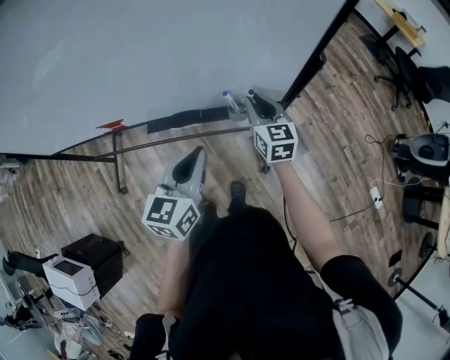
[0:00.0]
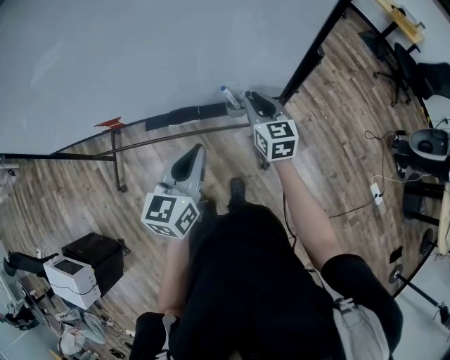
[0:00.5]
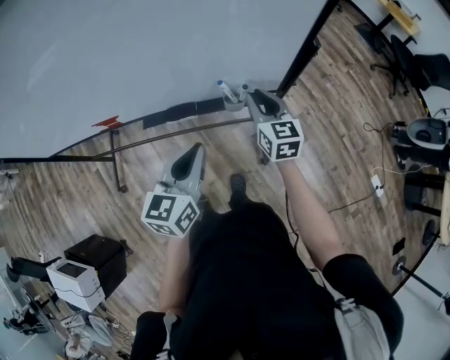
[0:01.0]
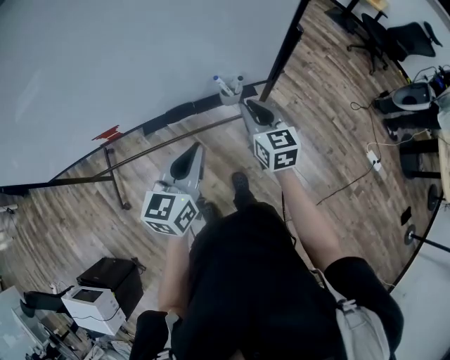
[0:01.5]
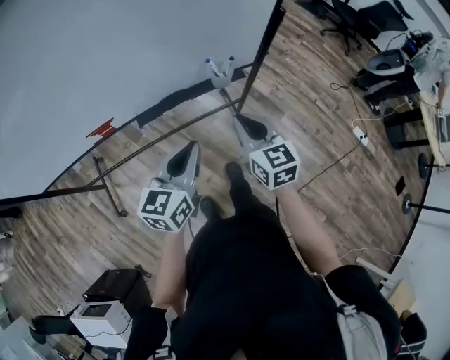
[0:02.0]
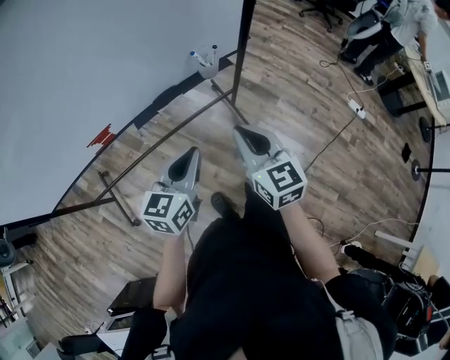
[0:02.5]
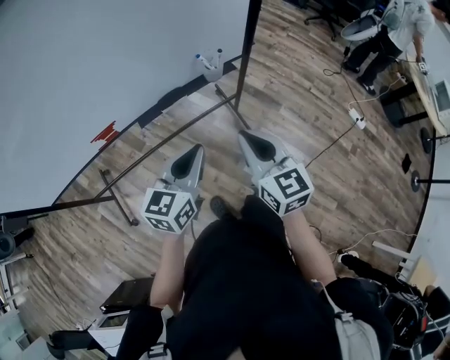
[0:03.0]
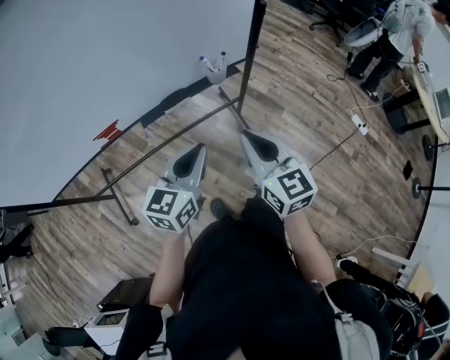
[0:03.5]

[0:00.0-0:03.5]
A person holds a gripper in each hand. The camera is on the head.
0:00.0 to 0:02.0: The left gripper moves backward and to the left, about 10 cm; the right gripper shifts roughly 20 cm backward.
0:02.0 to 0:03.5: The right gripper shifts roughly 15 cm backward and upward. The left gripper heads backward, covering about 5 cm.

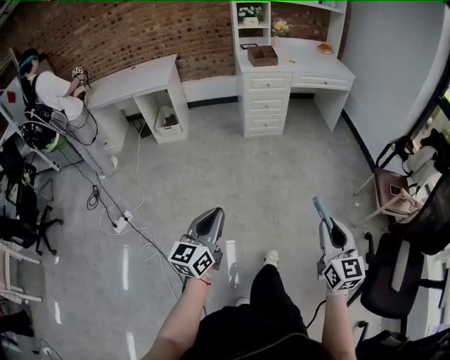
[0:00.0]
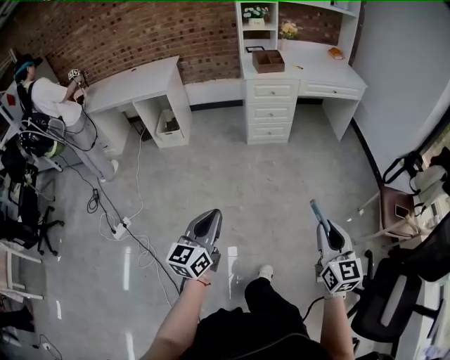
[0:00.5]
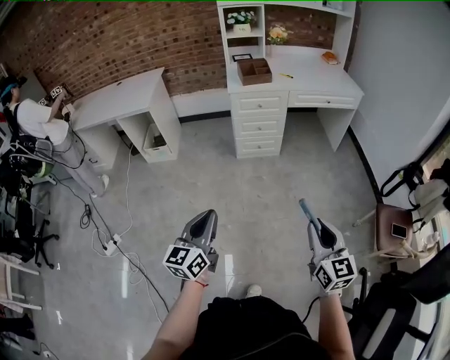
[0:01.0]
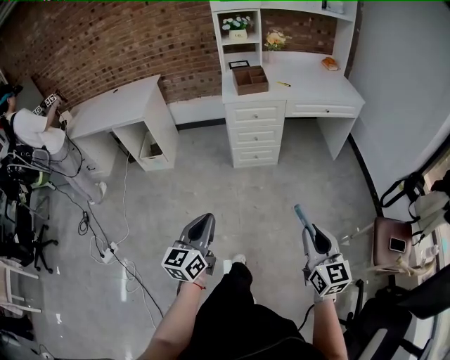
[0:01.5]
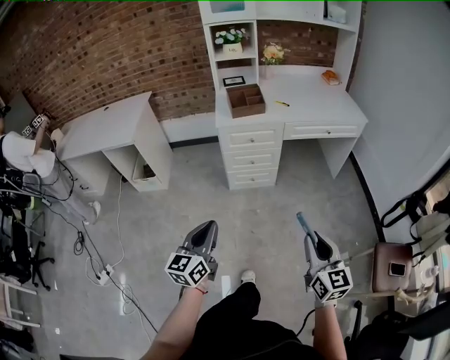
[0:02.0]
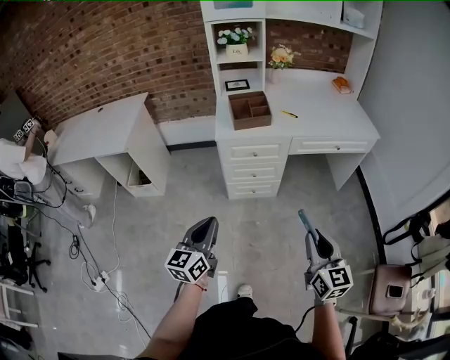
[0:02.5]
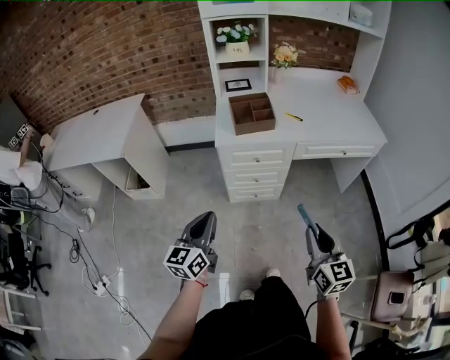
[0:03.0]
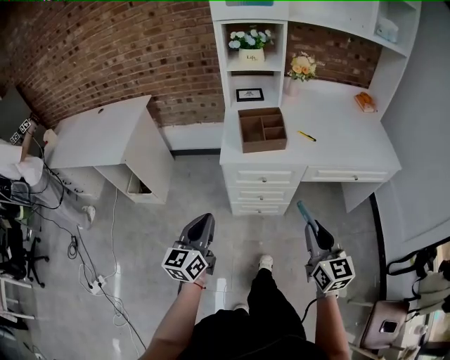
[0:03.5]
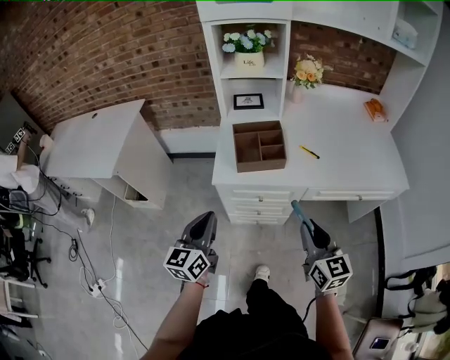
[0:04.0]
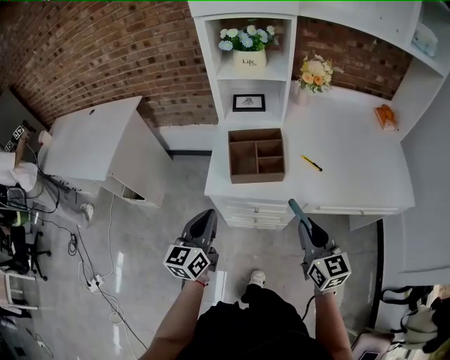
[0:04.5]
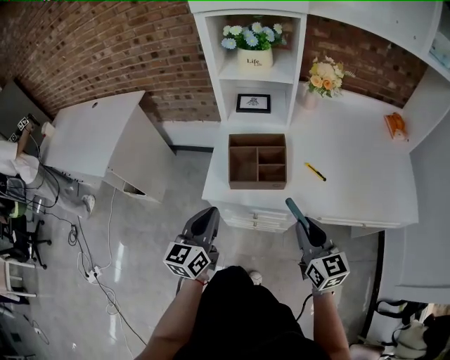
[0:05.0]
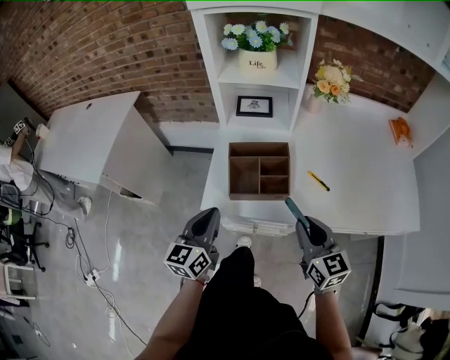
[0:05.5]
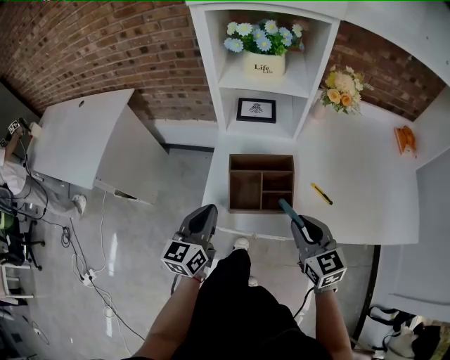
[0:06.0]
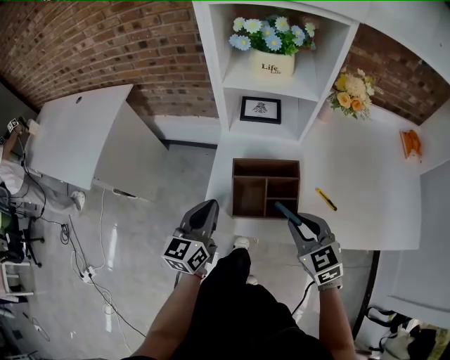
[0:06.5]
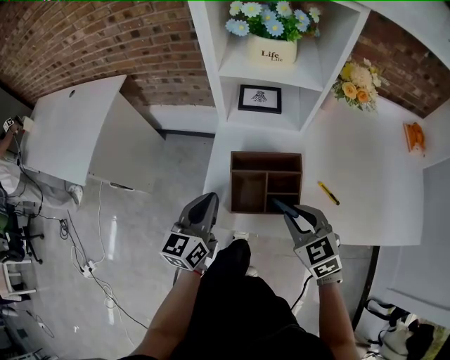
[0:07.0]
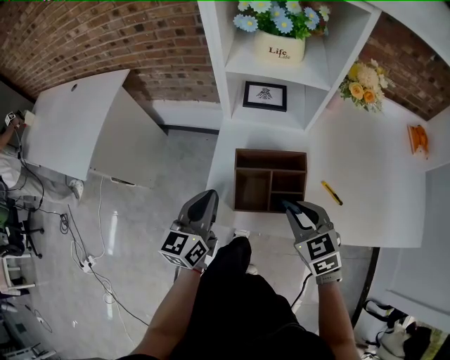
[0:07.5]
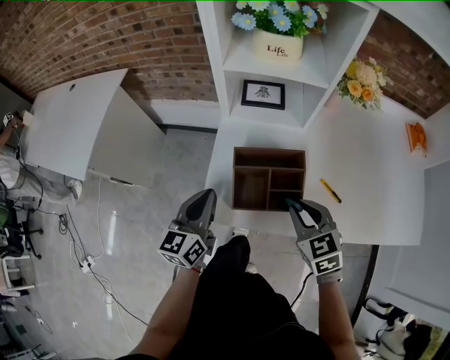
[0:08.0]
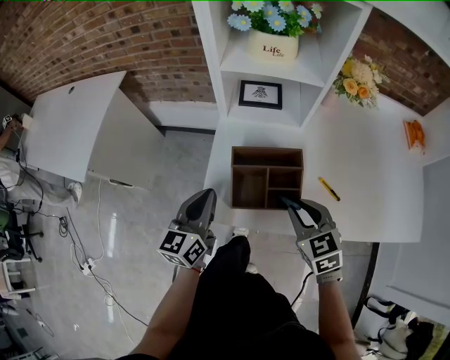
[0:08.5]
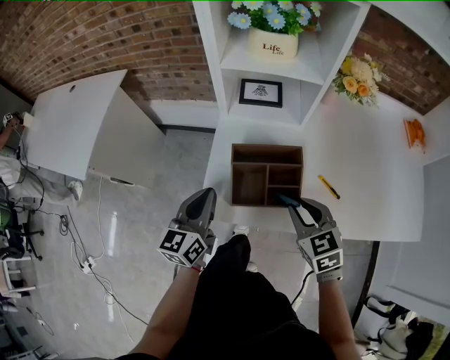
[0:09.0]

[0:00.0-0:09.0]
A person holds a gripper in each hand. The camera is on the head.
0:00.0 to 0:02.0: Both grippers are carried forward, approximately 50 cm.
0:02.0 to 0:04.5: The pair of grippers is taken forward, some 50 cm.
0:04.5 to 0:07.0: Both grippers travel together forward, roughly 20 cm. The right gripper turns by some 40 degrees.
0:07.0 to 0:09.0: The grippers move only a little.

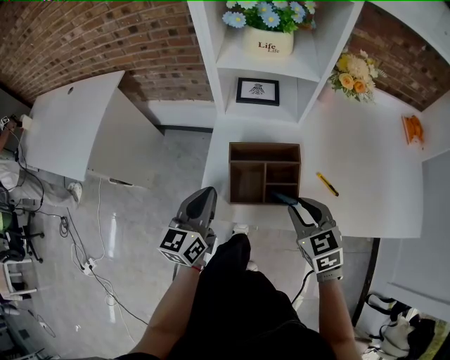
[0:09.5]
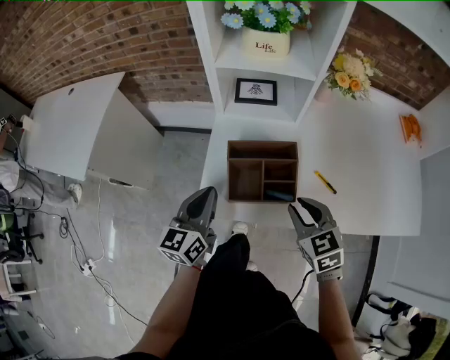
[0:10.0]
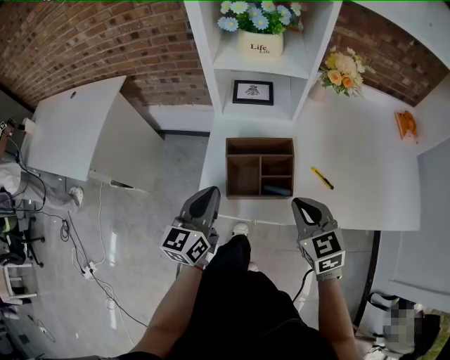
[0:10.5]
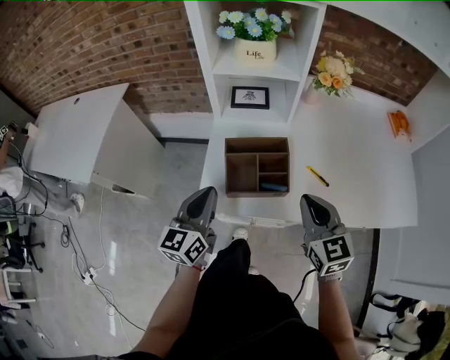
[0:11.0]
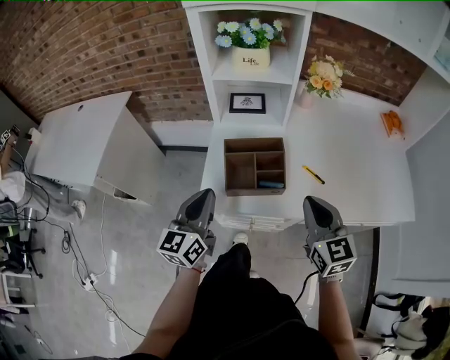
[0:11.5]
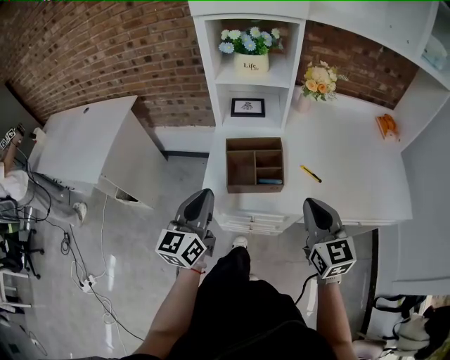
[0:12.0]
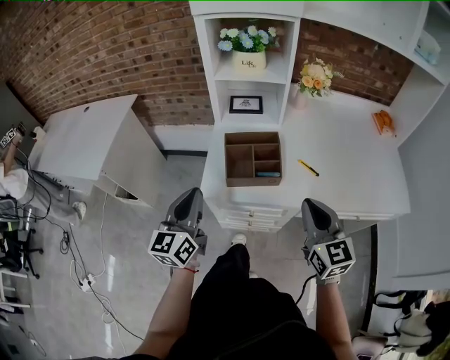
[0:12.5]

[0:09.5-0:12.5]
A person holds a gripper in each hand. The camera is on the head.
0:09.5 to 0:11.0: The left gripper moves about 5 cm, while the right gripper is displaced upward by about 10 cm, rotates some 20 degrees, and closes its fingers.
0:11.0 to 0:12.5: The left gripper goes roughly 10 cm backward and upward. The right gripper goes about 10 cm backward.

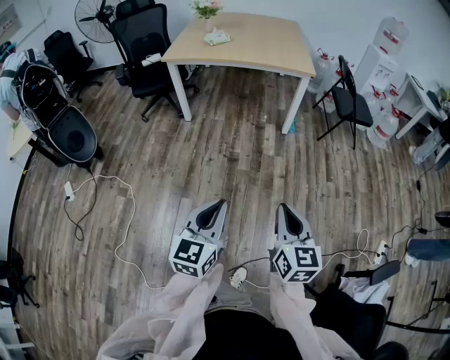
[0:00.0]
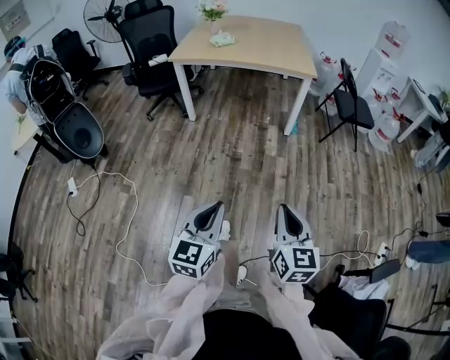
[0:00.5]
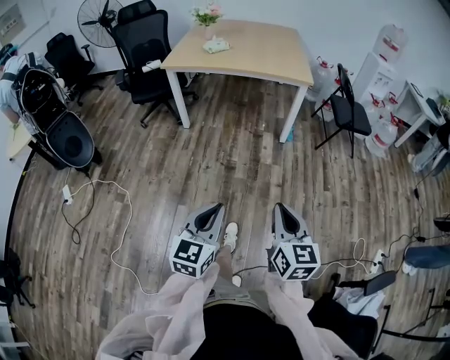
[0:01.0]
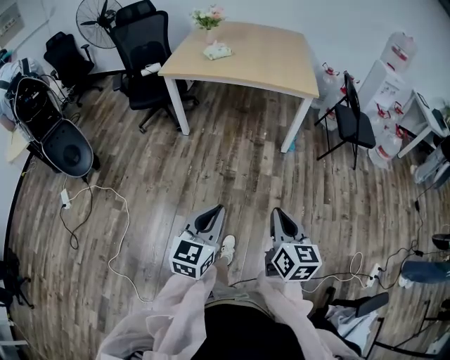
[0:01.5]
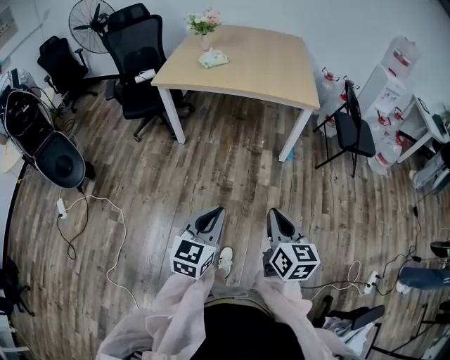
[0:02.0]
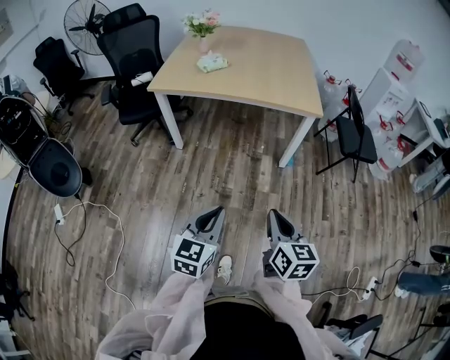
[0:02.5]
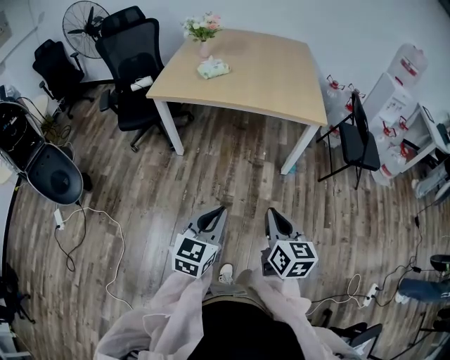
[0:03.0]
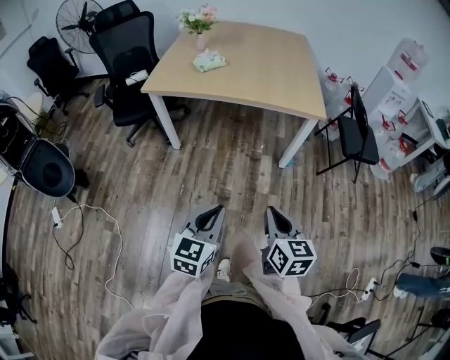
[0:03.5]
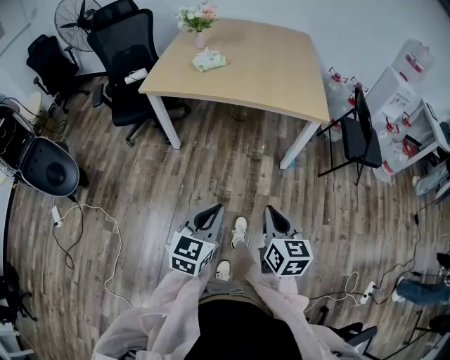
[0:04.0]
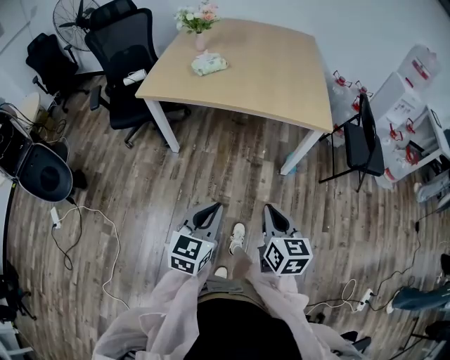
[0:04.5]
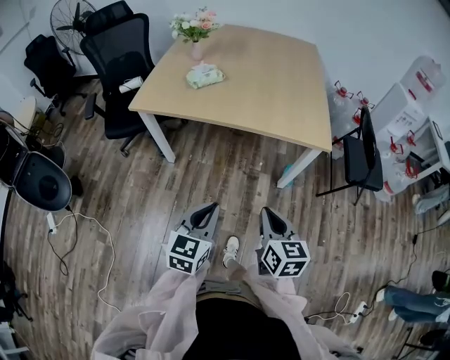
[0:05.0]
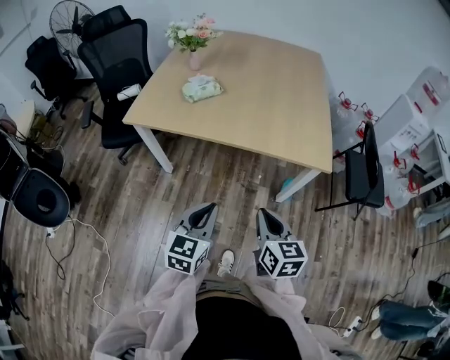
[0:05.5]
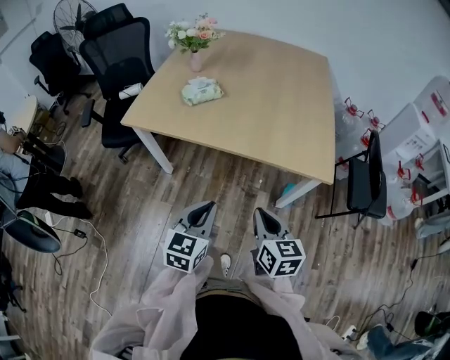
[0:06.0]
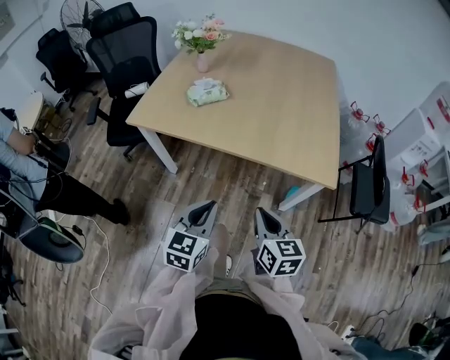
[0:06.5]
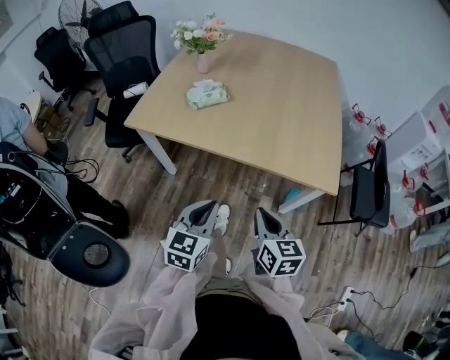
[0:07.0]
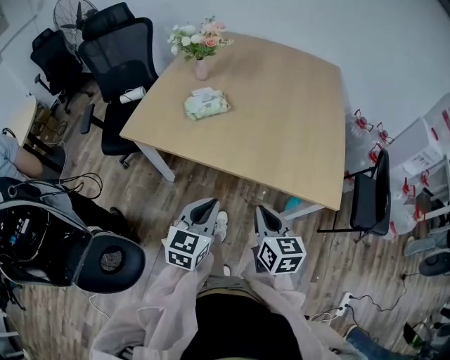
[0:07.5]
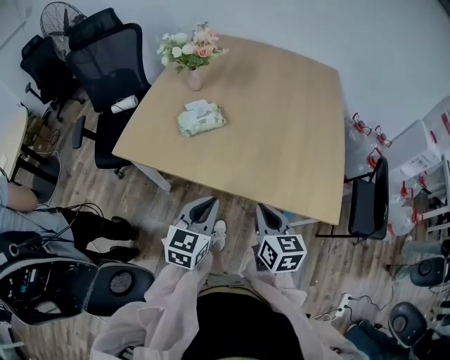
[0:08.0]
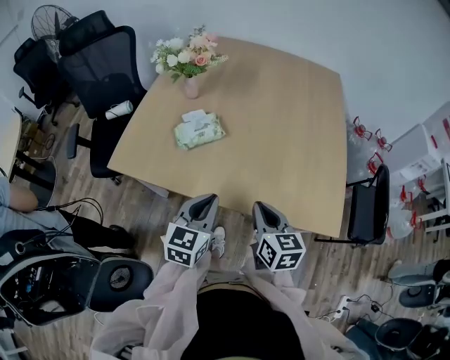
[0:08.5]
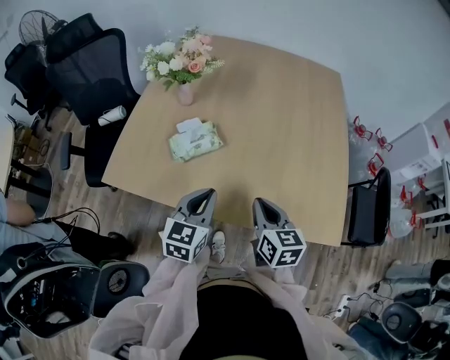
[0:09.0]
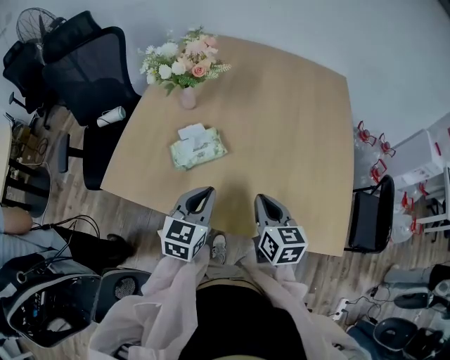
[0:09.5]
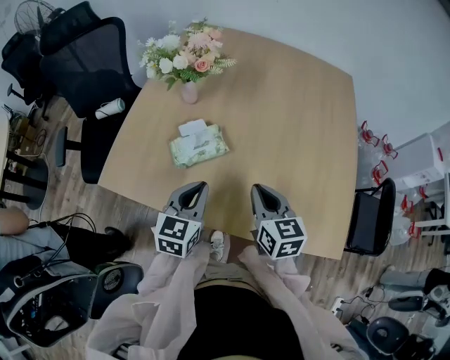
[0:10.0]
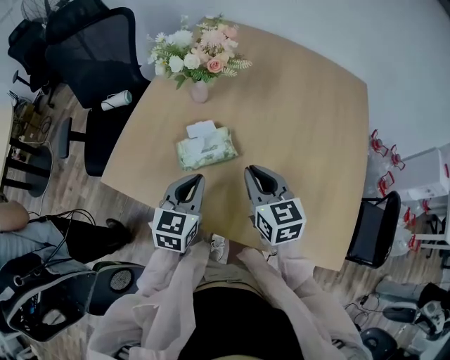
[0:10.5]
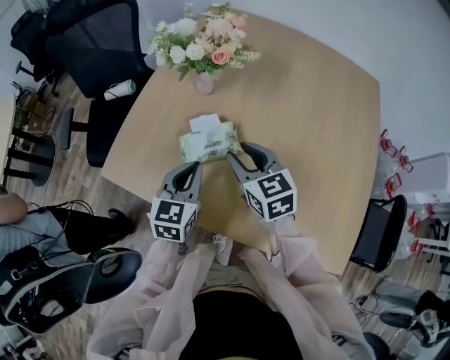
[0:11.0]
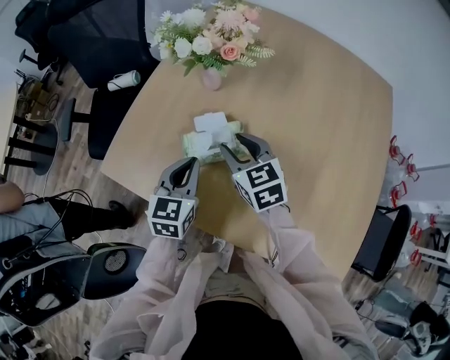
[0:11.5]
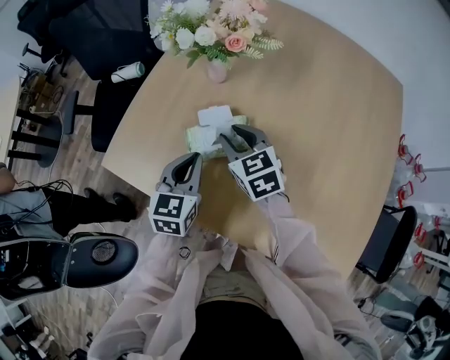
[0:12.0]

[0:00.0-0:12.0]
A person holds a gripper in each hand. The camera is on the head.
0:00.0 to 0:02.0: Both grippers move forward, some 20 cm.
0:02.0 to 0:04.0: Both grippers move forward, roughly 15 cm.
0:04.0 to 0:06.0: Both grippers move forward, approximately 30 cm.
0:06.0 to 0:08.0: The two grippers go roughly 20 cm forward.
0:08.0 to 0:10.0: Both grippers move forward, about 20 cm.
0:10.0 to 0:12.0: The right gripper shifts some 20 cm forward and to the left, rotates about 30 degrees, and opens up. Meanwhile the left gripper travels forward and to the left by approximately 10 cm.
